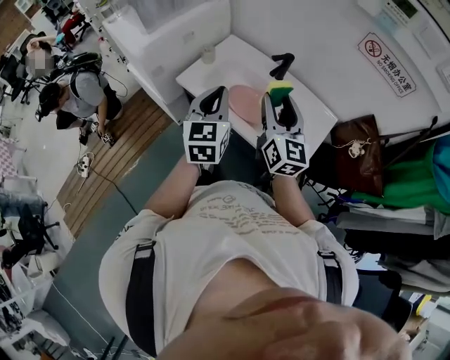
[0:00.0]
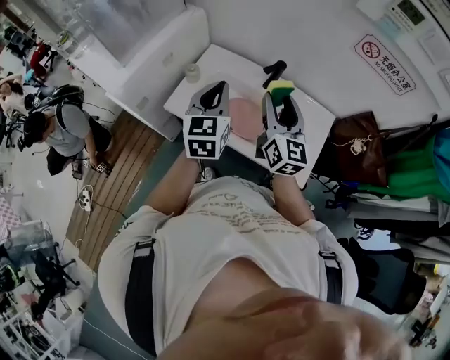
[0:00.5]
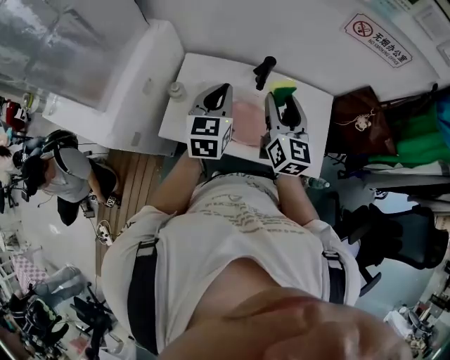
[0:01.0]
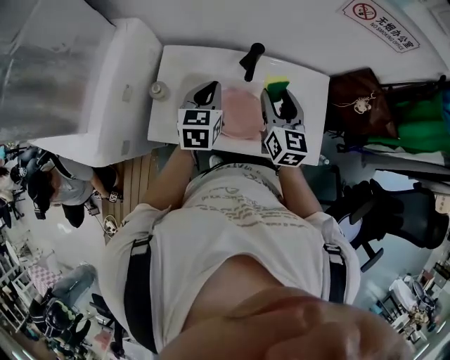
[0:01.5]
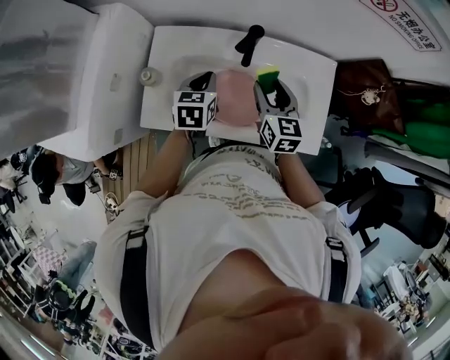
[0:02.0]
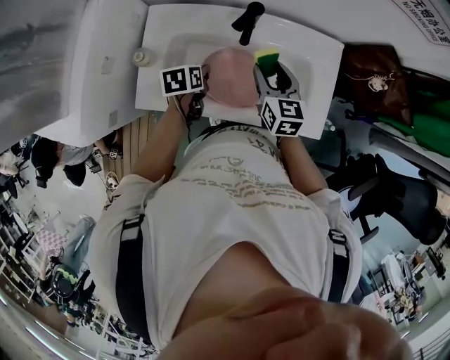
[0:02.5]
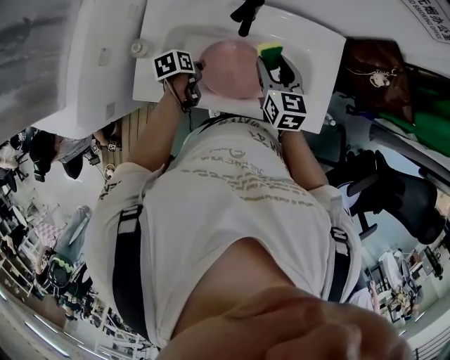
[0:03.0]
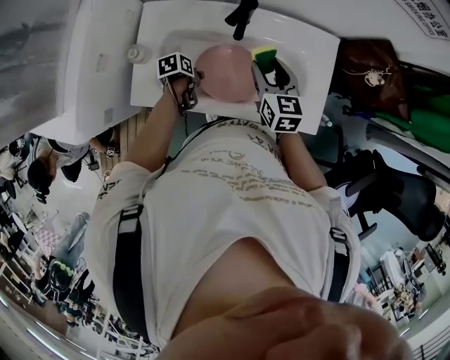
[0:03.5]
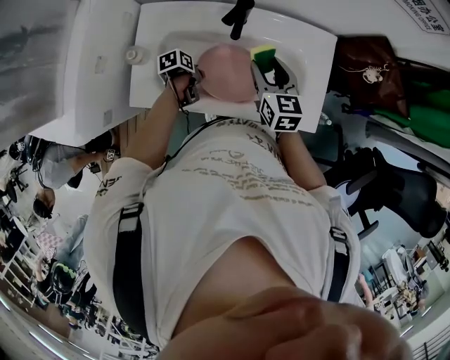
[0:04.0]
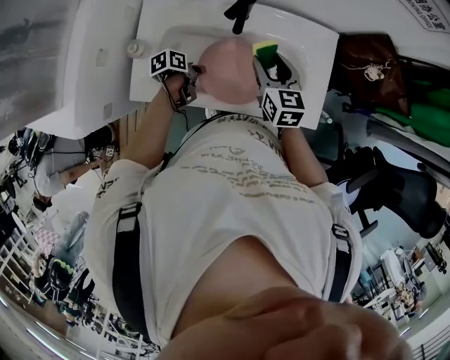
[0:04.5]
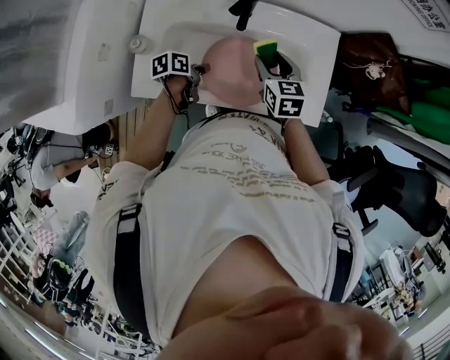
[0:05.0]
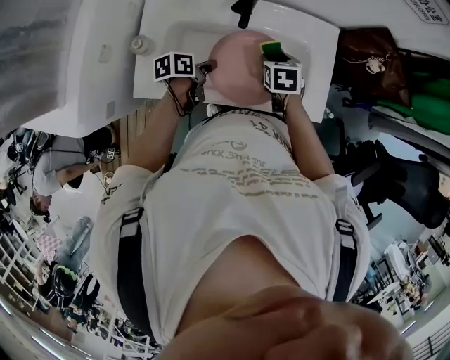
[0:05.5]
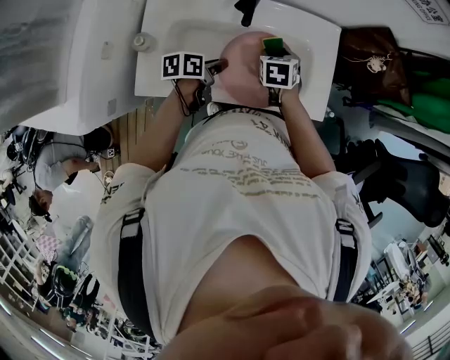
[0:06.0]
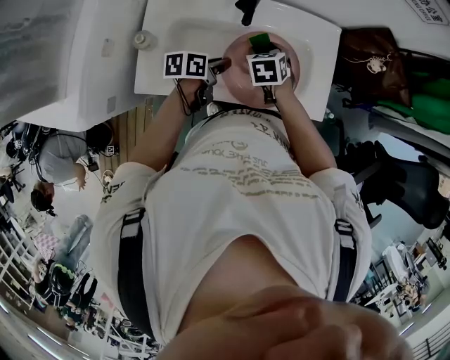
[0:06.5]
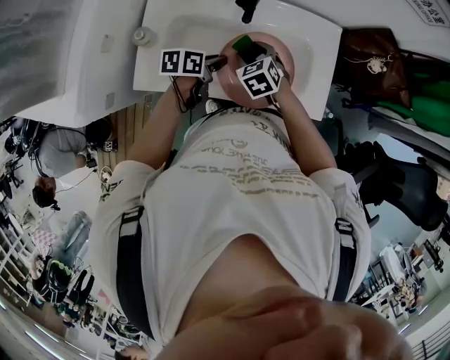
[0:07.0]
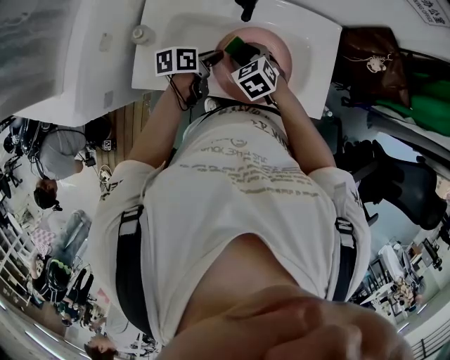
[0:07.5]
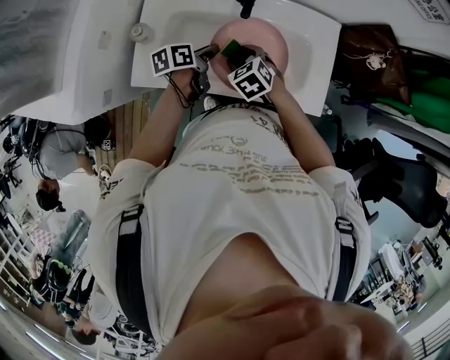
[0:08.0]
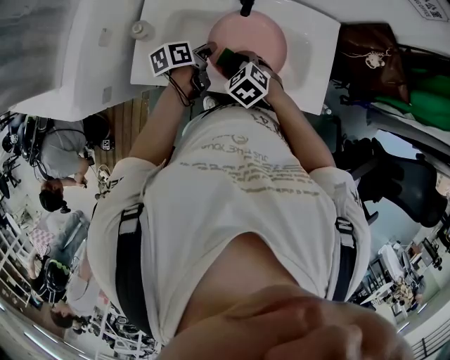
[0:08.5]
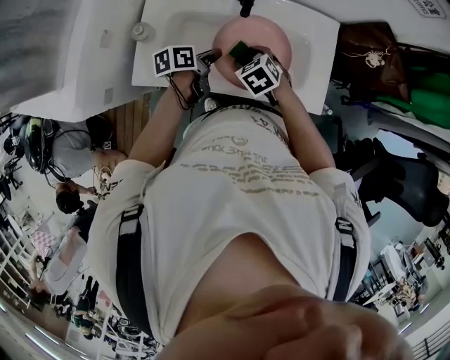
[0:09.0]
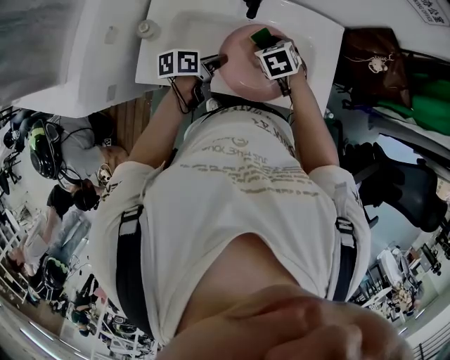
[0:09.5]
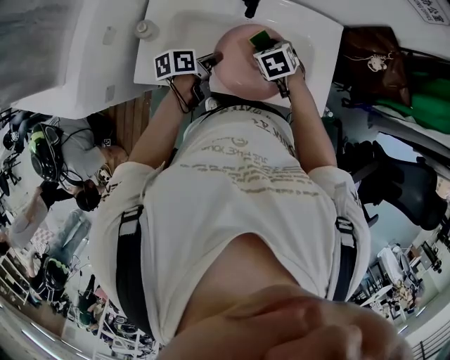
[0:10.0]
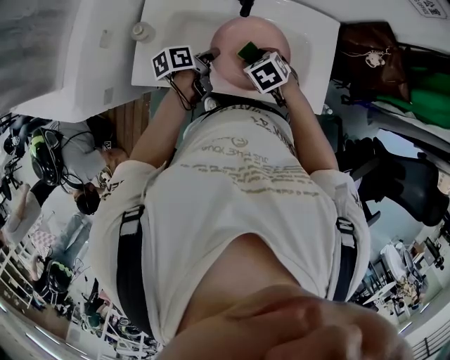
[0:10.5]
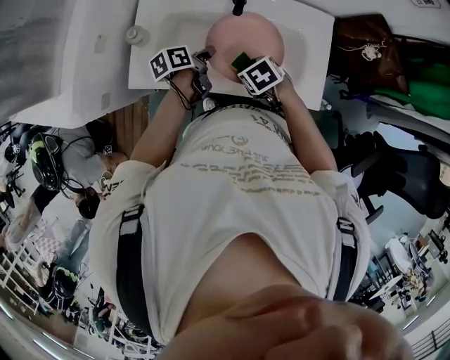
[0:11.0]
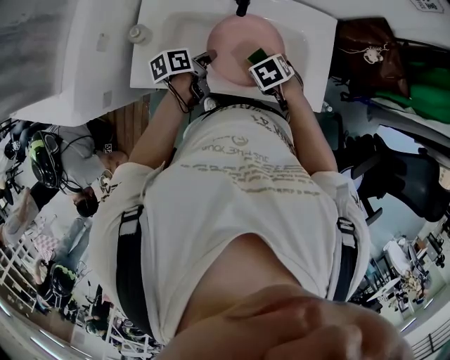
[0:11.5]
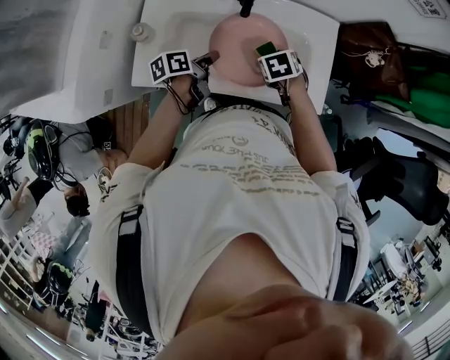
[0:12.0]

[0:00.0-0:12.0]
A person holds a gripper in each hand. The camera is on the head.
0:00.0 to 0:02.0: The left gripper changes place by about 30 cm, and tips its fingers downward by approximately 30 degrees. The right gripper heads downward, covering approximately 20 cm, and swivels approximately 40 degrees.
0:02.0 to 0:04.0: The left gripper shifts roughly 20 cm downward, swivels about 60 degrees, and opens, then closes once more.
0:04.0 to 0:06.0: The left gripper travels upward and to the right by roughly 10 cm, and changes its angle by some 30 degrees, while the right gripper moves downward, about 10 cm, and points its fingers approximately 30 degrees further downward.
0:06.0 to 0:08.0: The right gripper moves approximately 15 cm, and rotates approximately 40 degrees.
0:08.0 to 0:10.0: The right gripper is displaced to the right and forward by approximately 10 cm.
0:10.0 to 0:12.0: The right gripper reaches some 10 cm backward, then returns.

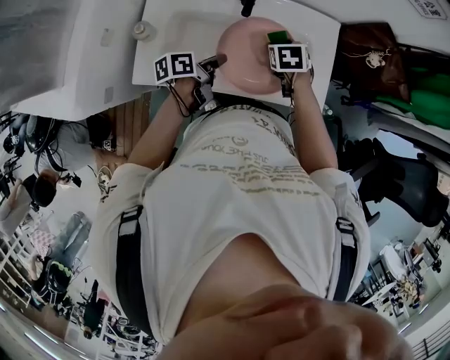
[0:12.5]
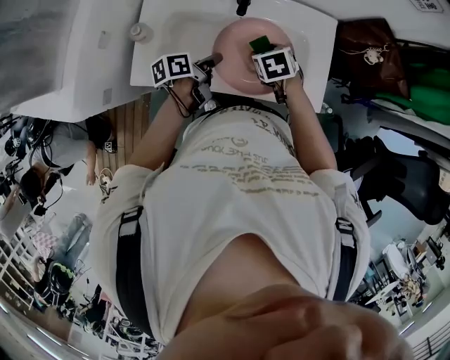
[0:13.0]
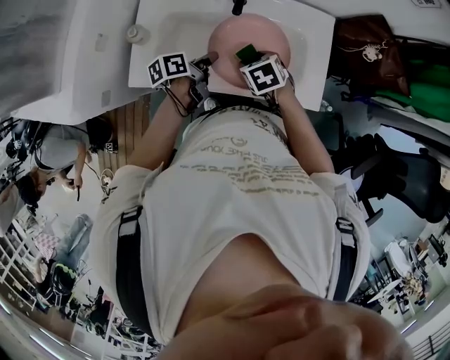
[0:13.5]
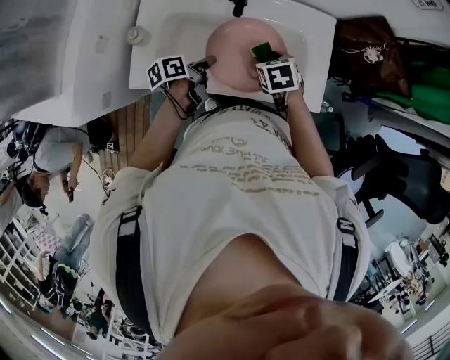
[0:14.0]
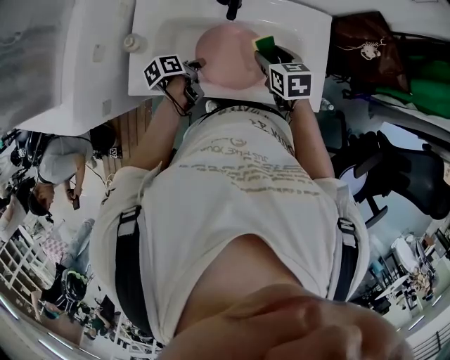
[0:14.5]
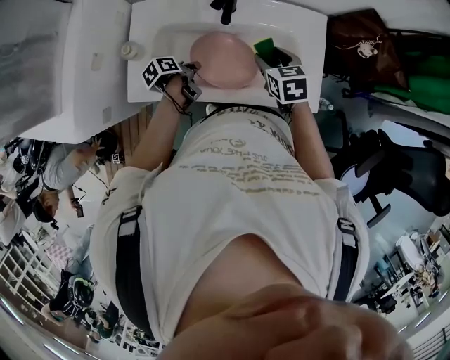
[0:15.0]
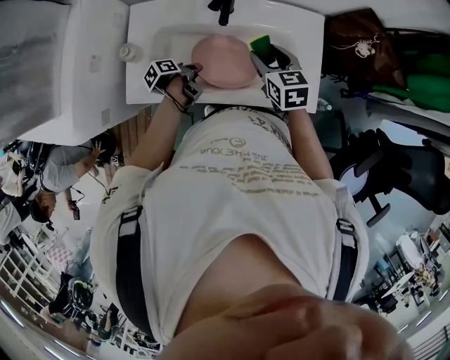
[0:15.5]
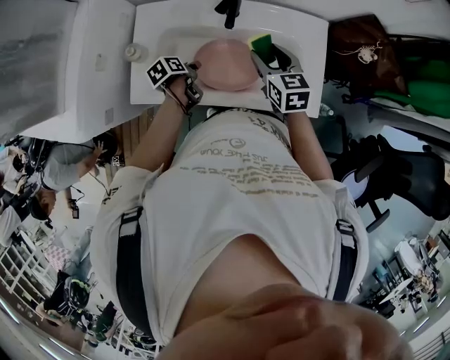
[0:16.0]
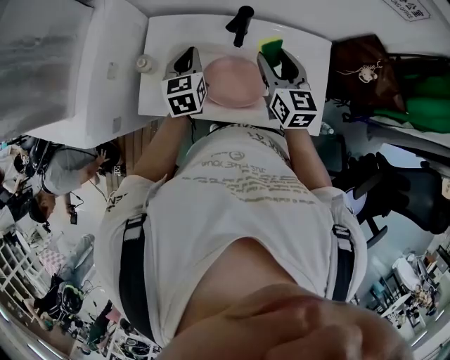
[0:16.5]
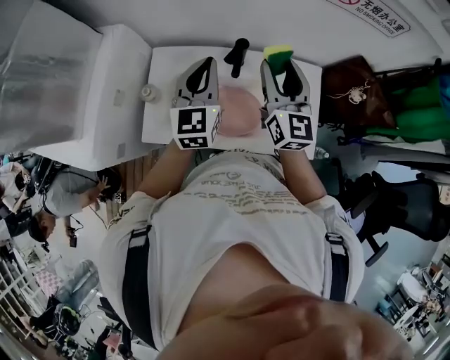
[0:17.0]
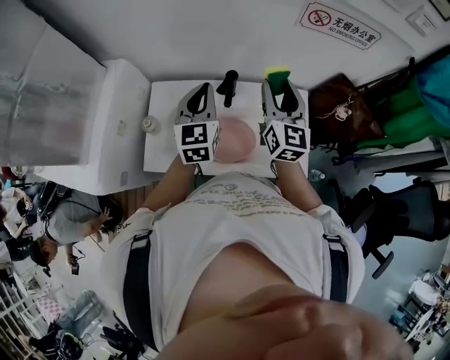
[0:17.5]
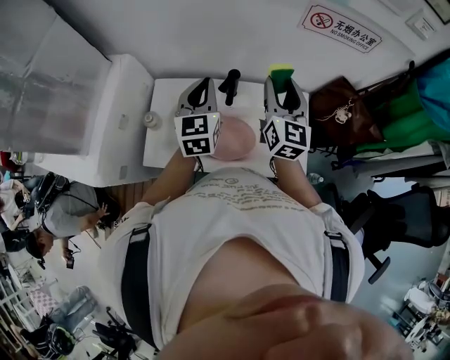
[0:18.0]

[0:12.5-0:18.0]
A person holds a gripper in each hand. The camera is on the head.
0:12.5 to 0:14.5: The right gripper changes its angle by roughly 20 degrees, while the left gripper heads downward, covering about 5 cm, and changes its angle by about 20 degrees.
0:14.5 to 0:16.0: The right gripper shifts by approximately 5 cm. Meanwhile the left gripper opens its fingers.
0:16.0 to 0:18.0: The right gripper is displaced upward by roughly 20 cm, and angles its fingers upward, by about 30 degrees, while the left gripper goes roughly 35 cm upward, angles its fingers upward, by some 50 degrees, and closes its fingers.

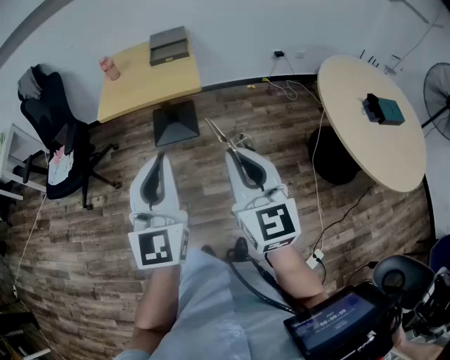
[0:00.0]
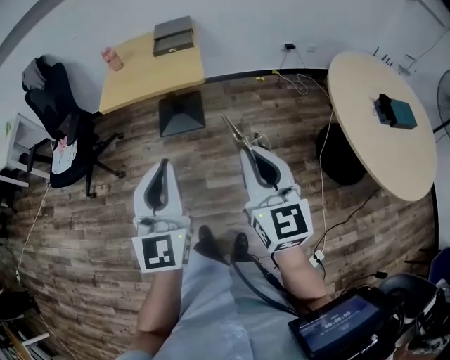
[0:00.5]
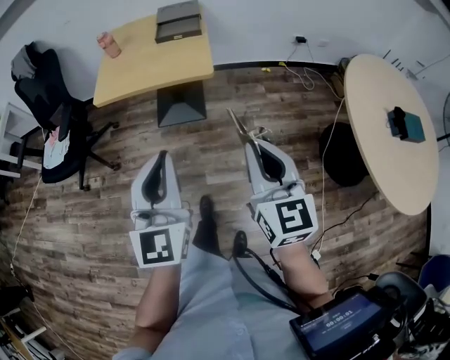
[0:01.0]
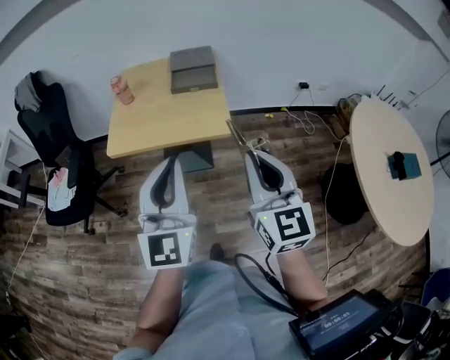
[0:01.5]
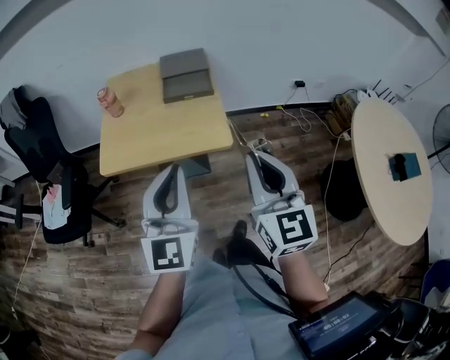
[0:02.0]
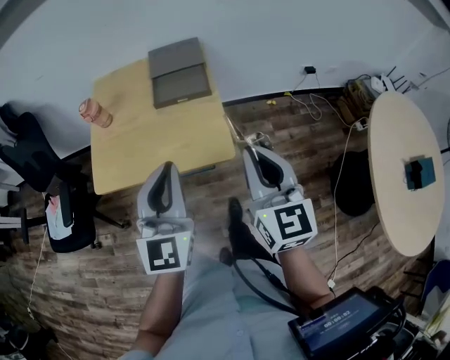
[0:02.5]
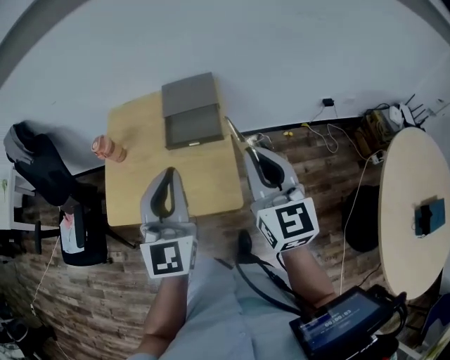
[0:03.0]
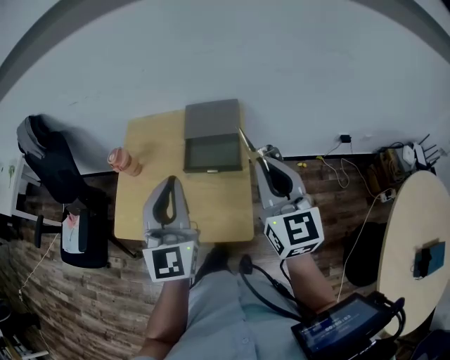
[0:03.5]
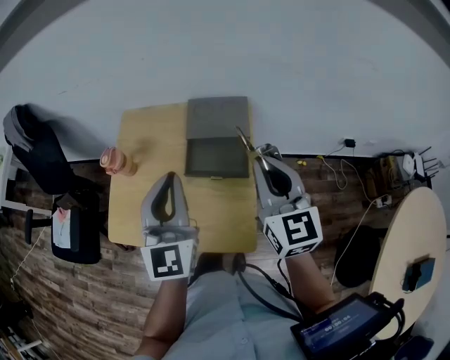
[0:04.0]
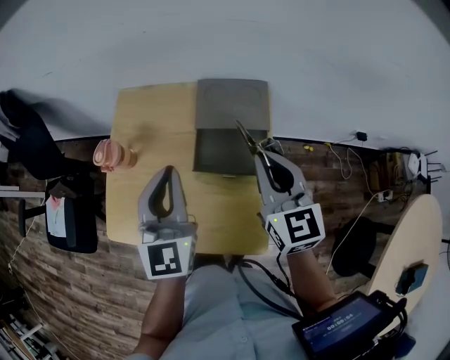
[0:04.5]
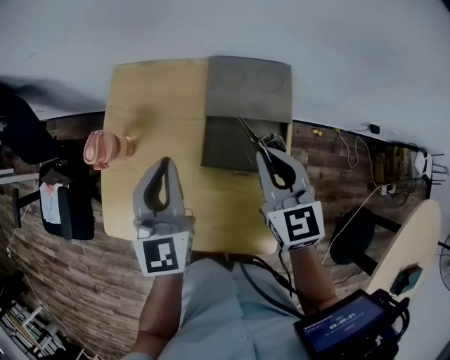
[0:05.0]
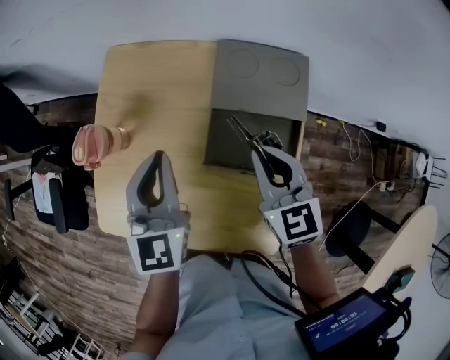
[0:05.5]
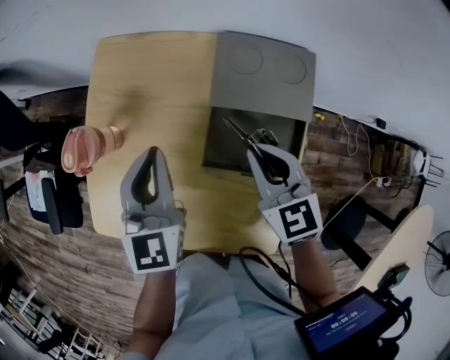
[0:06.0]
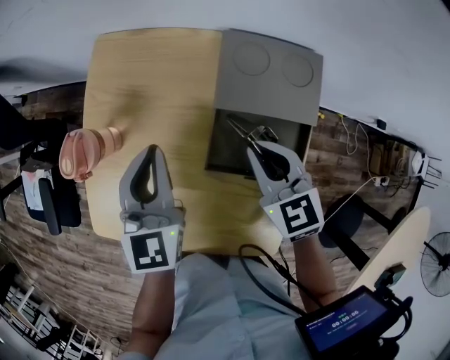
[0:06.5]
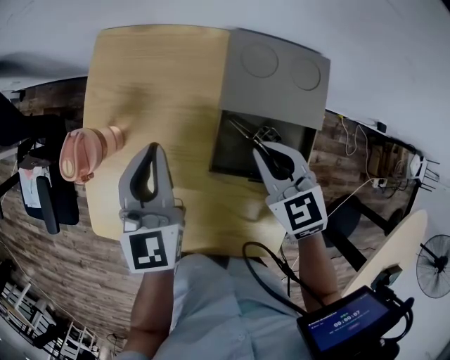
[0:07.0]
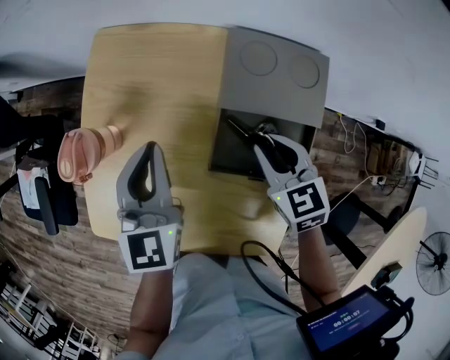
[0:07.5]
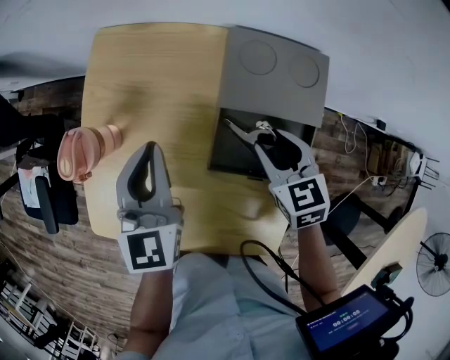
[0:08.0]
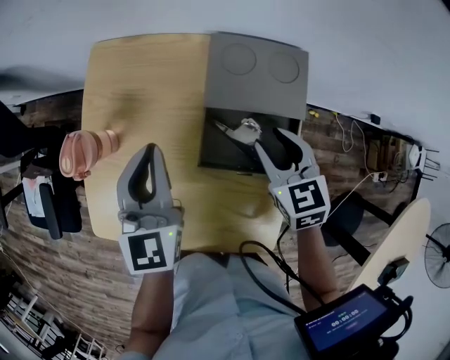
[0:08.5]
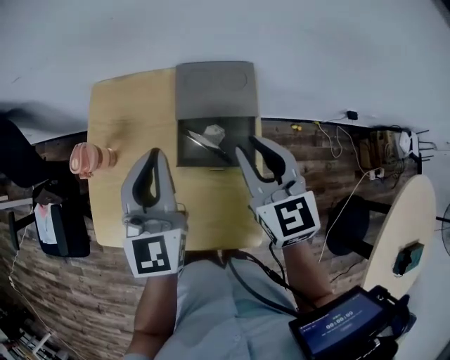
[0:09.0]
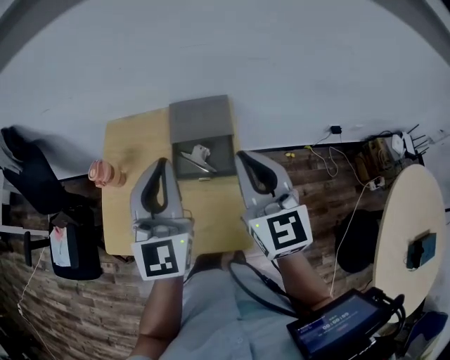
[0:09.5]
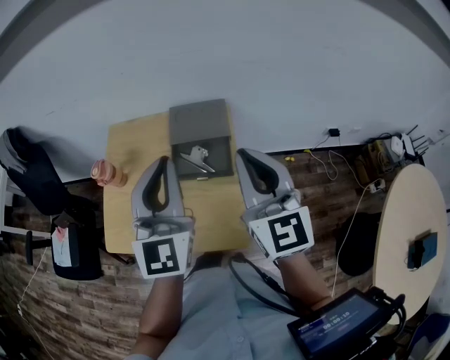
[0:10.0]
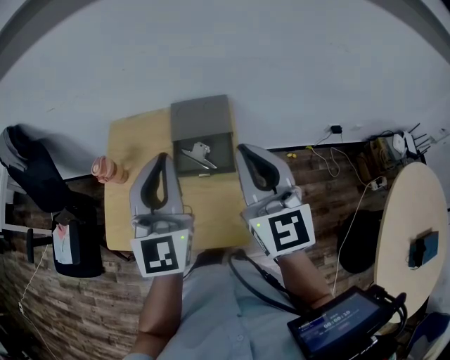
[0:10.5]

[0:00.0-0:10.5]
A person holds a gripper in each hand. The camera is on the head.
0:00.0 to 0:02.0: Both grippers travel together forward, roughly 35 cm.
0:02.0 to 0:04.0: Both grippers travel together forward, approximately 40 cm.
0:04.0 to 0:06.5: Both grippers move downward, forward and to the left, roughly 30 cm. The left gripper turns by roughly 20 degrees, while the right gripper changes its angle by roughly 30 degrees.
0:06.5 to 0:08.5: The right gripper shifts about 5 cm to the right, and opens its fingers.
0:08.5 to 0:10.5: The right gripper is displaced upward and backward by approximately 35 cm, points its fingers approximately 40 degrees further upward, and closes up; the left gripper heads upward, backward and to the right, covering approximately 35 cm, and changes its angle by some 30 degrees.
